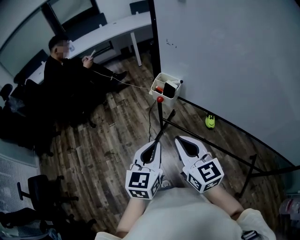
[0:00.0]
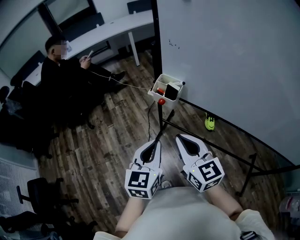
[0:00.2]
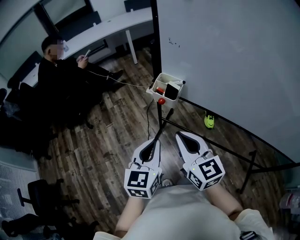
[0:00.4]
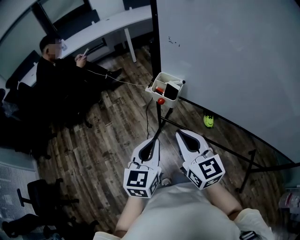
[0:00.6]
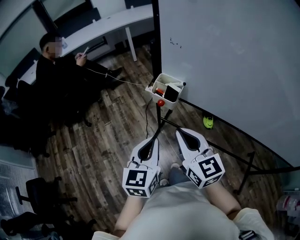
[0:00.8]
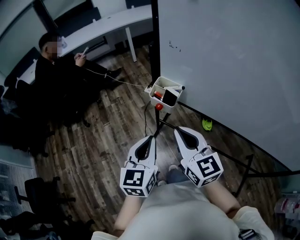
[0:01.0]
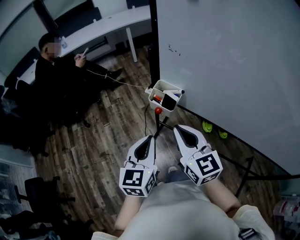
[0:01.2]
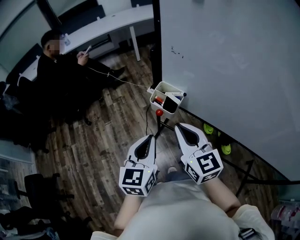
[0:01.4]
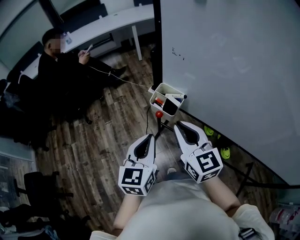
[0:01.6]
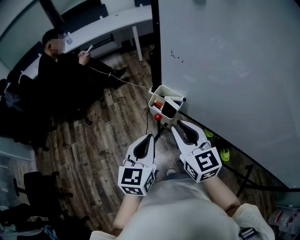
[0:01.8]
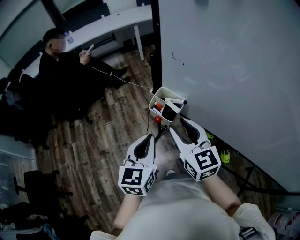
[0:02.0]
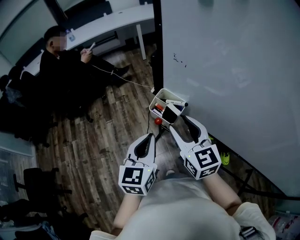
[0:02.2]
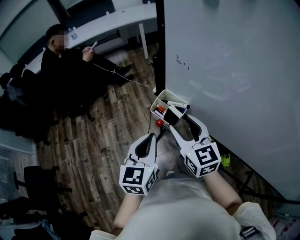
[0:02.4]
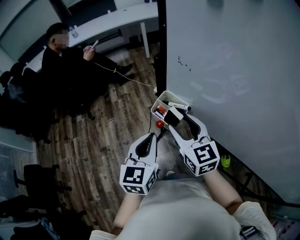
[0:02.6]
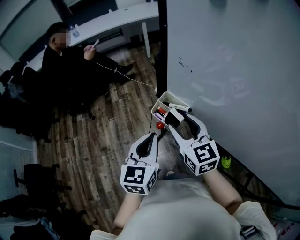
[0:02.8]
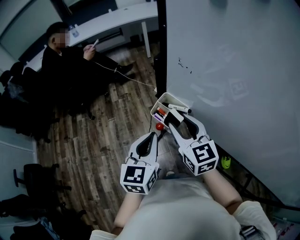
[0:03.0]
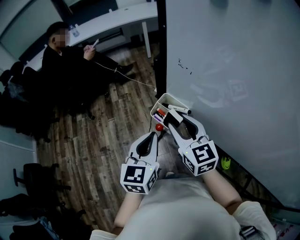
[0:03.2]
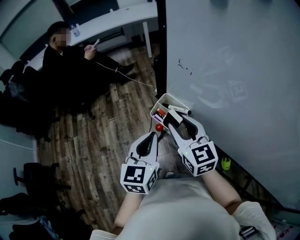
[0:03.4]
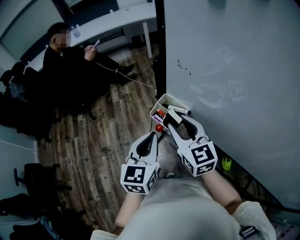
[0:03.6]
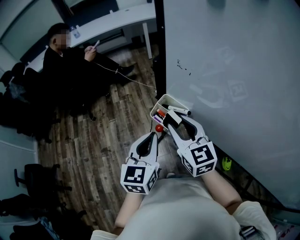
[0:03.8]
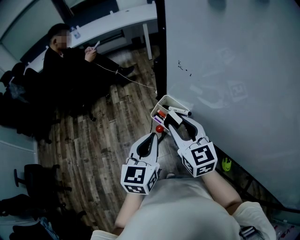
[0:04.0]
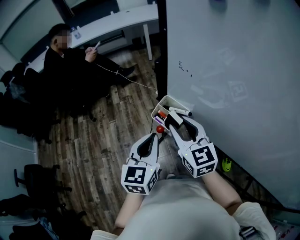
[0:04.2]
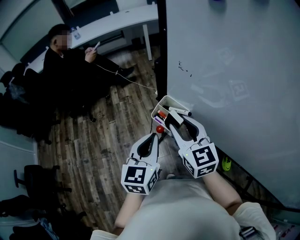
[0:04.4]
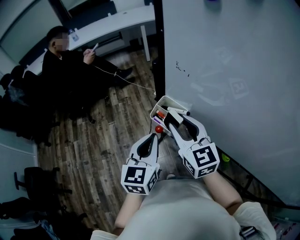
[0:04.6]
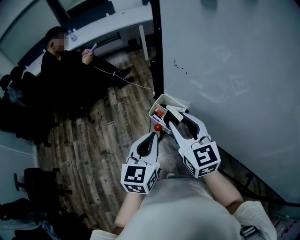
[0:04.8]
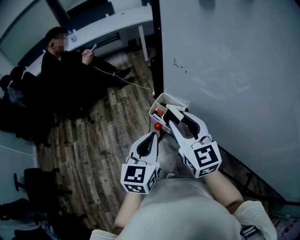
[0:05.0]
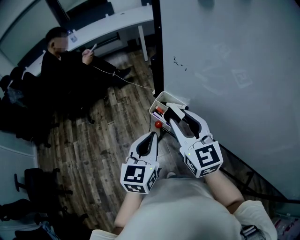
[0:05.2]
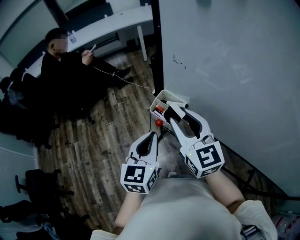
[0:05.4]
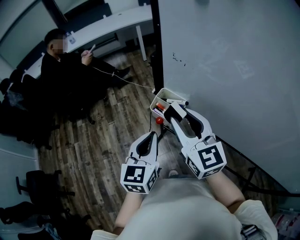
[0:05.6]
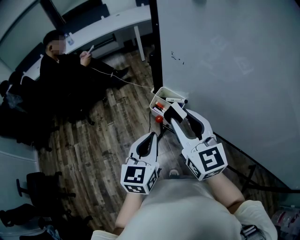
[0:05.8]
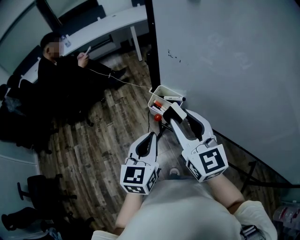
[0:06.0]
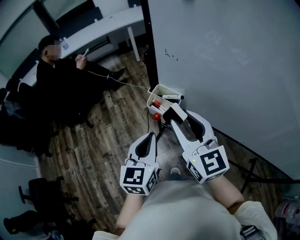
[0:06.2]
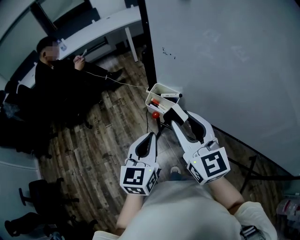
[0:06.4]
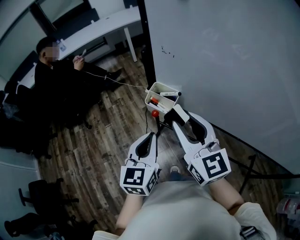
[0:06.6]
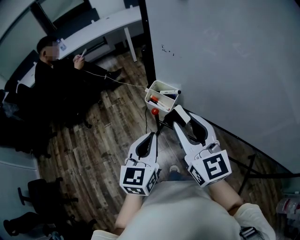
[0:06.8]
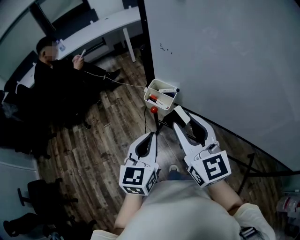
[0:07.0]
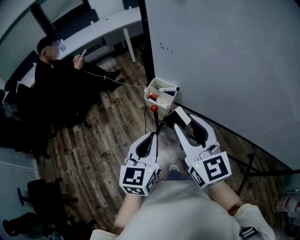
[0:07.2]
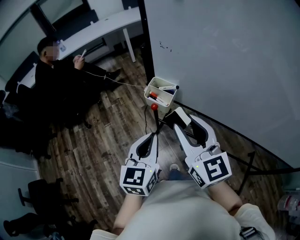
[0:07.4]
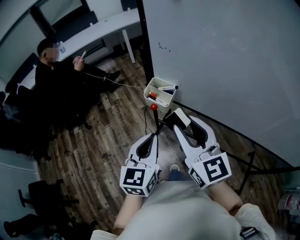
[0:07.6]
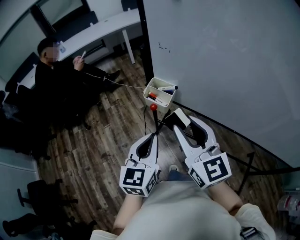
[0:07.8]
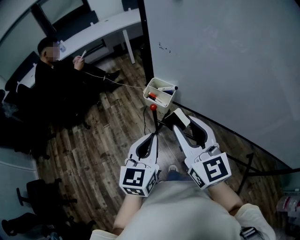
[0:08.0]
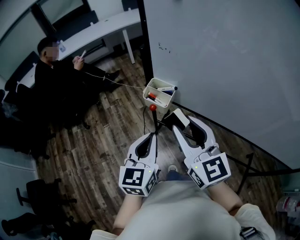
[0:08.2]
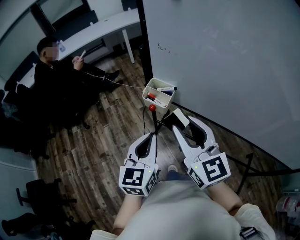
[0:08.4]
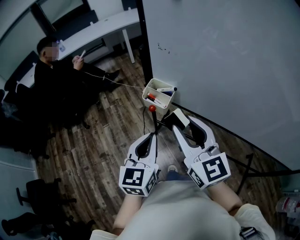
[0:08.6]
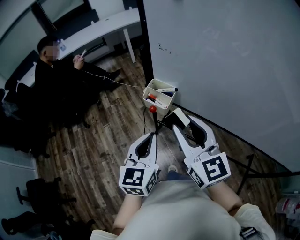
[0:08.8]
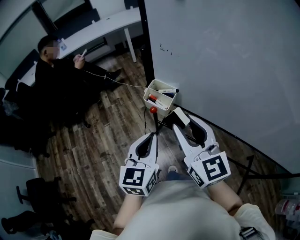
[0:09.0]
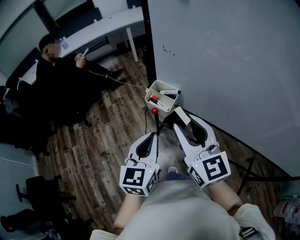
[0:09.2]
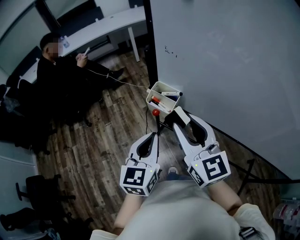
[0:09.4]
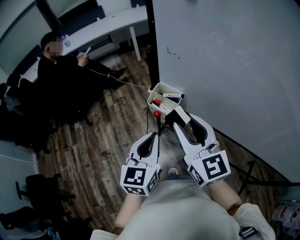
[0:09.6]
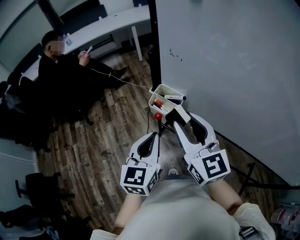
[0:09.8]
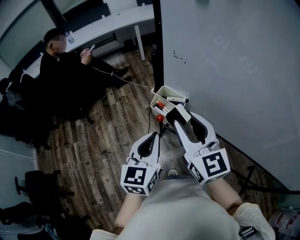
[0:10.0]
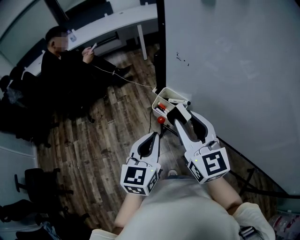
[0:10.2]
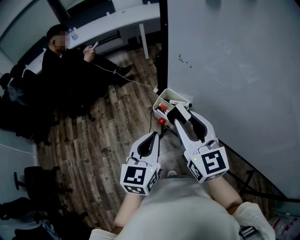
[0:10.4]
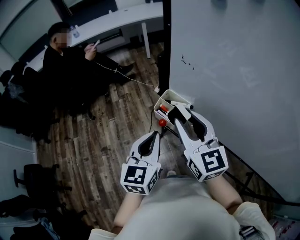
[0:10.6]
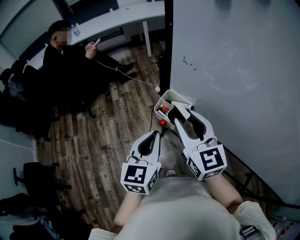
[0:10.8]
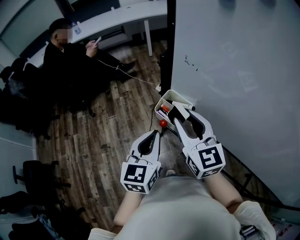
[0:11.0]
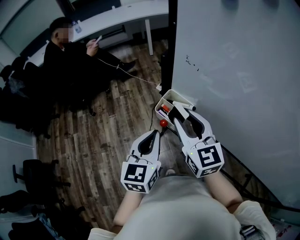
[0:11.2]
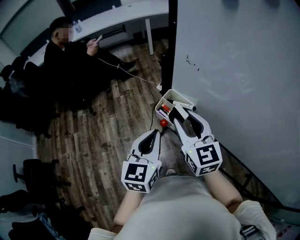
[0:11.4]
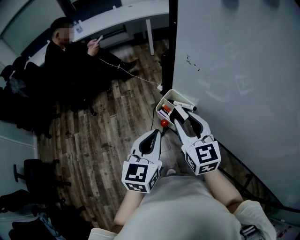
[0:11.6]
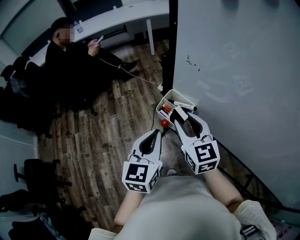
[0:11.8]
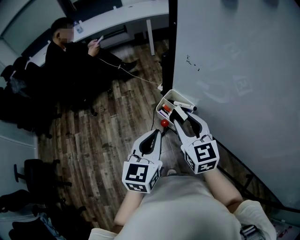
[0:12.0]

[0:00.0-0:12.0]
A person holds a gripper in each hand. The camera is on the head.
0:00.0 to 0:01.6: Both grippers move forward, roughly 15 cm.
0:01.6 to 0:03.0: Both grippers move forward, roughly 10 cm. The right gripper opens its fingers.
0:03.0 to 0:04.4: Both grippers stay about where they are.
0:04.4 to 0:06.0: The left gripper ends up some 5 cm from where it was, while the right gripper goes approximately 10 cm upward and backward.
0:06.0 to 0:07.6: Both grippers travel together backward, roughly 10 cm.
0:07.6 to 0:09.0: The grippers stay close to where they were, moving slightly.
0:09.0 to 0:10.4: The two grippers go approximately 10 cm forward.
0:10.4 to 0:12.0: The right gripper shifts about 10 cm downward.

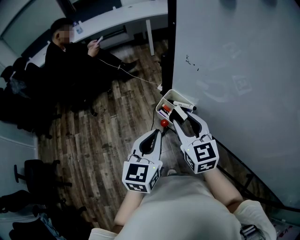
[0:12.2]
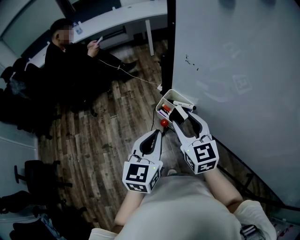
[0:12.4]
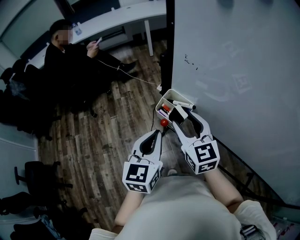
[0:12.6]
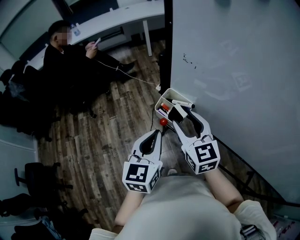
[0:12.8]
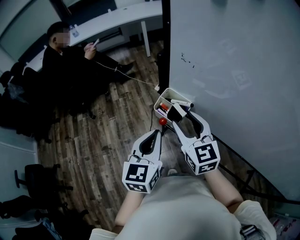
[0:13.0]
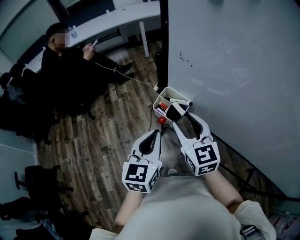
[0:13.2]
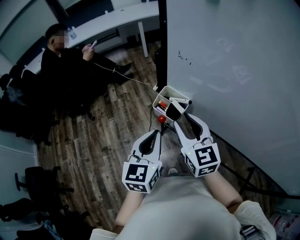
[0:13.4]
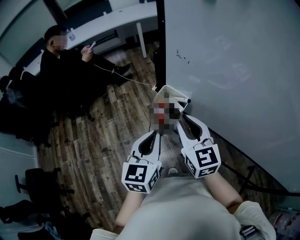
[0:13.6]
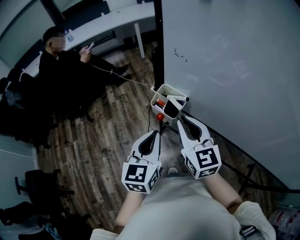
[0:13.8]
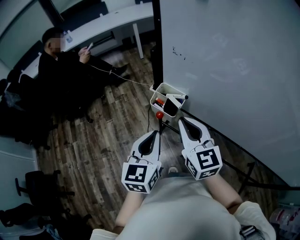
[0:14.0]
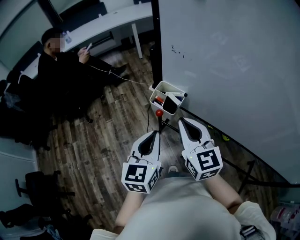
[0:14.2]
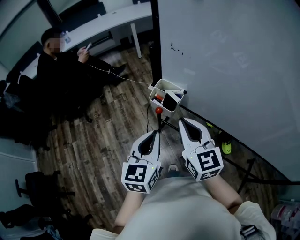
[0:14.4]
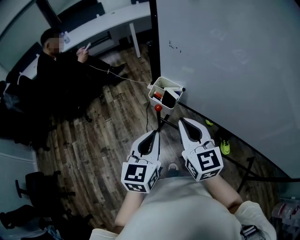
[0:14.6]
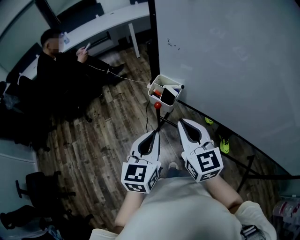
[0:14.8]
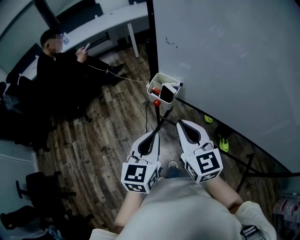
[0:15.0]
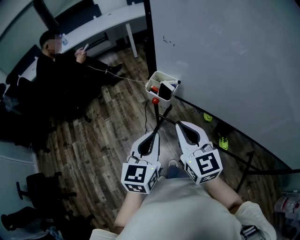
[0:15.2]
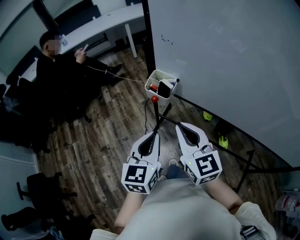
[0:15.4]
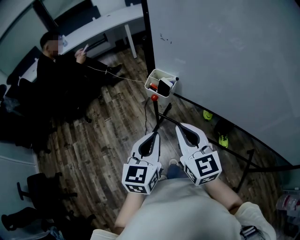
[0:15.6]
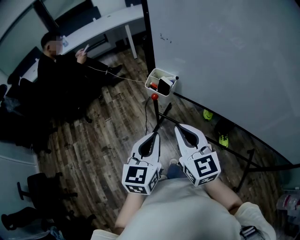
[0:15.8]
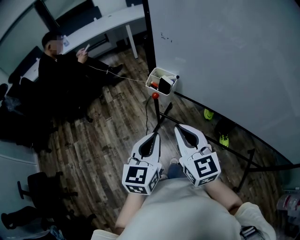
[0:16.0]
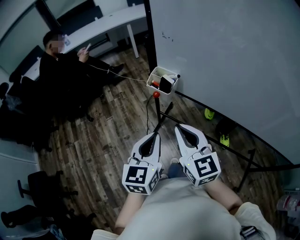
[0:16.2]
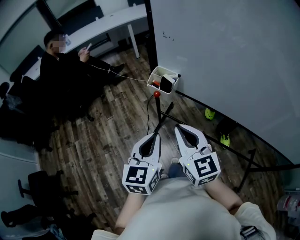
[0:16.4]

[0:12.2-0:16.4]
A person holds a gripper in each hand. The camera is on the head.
0:12.2 to 0:13.6: There are only small adjustments of the grippers.
0:13.6 to 0:15.0: The grippers both shift backward by approximately 10 cm. The right gripper closes up.
0:15.0 to 0:16.4: The grippers both shift backward by about 5 cm.

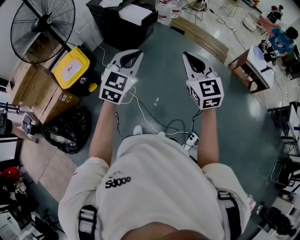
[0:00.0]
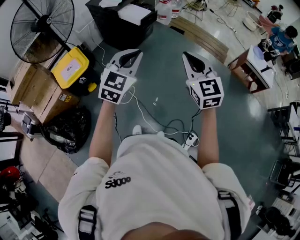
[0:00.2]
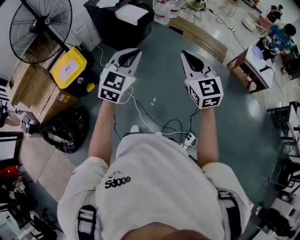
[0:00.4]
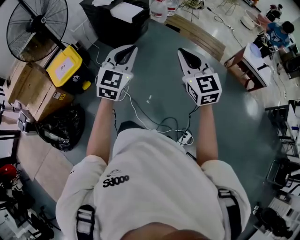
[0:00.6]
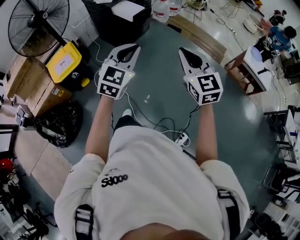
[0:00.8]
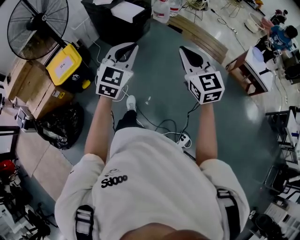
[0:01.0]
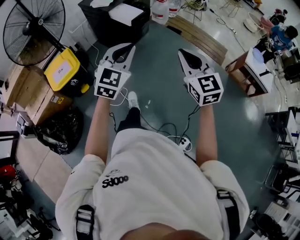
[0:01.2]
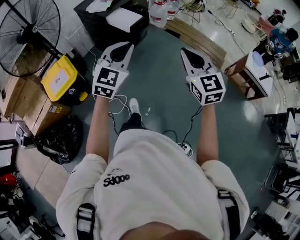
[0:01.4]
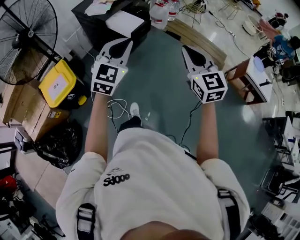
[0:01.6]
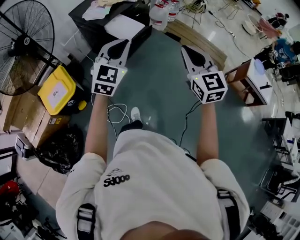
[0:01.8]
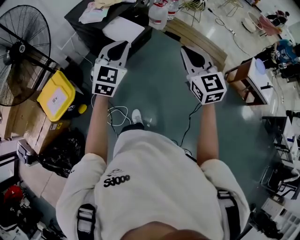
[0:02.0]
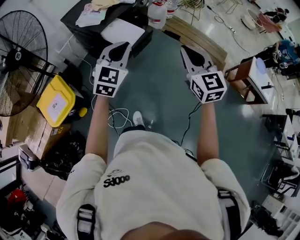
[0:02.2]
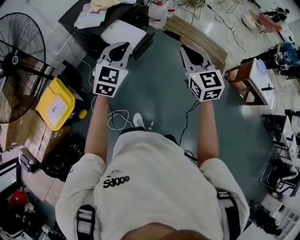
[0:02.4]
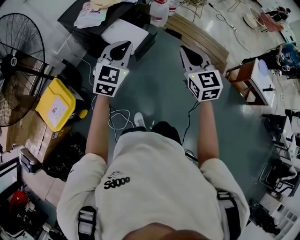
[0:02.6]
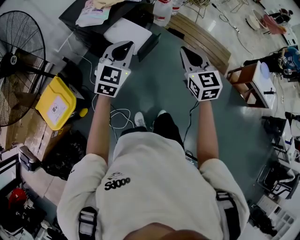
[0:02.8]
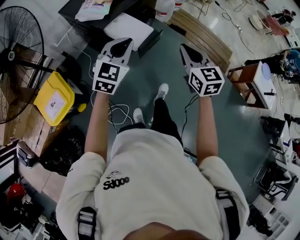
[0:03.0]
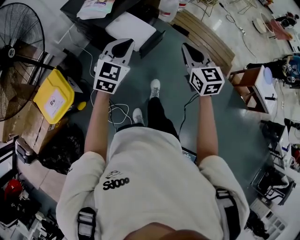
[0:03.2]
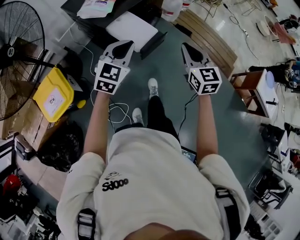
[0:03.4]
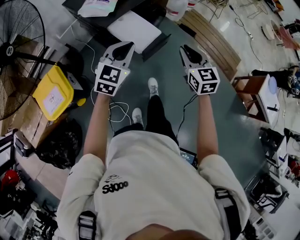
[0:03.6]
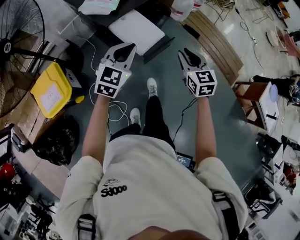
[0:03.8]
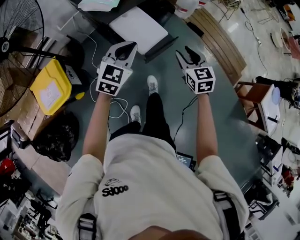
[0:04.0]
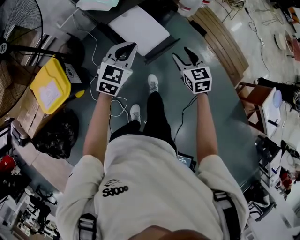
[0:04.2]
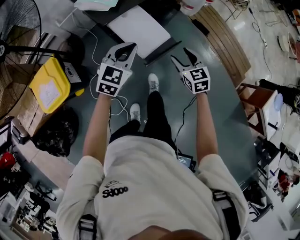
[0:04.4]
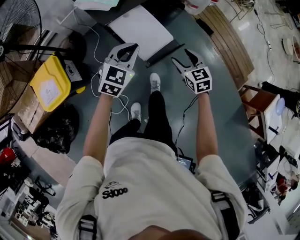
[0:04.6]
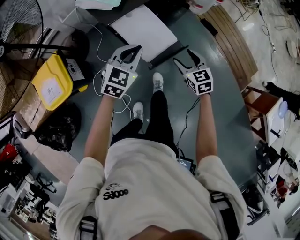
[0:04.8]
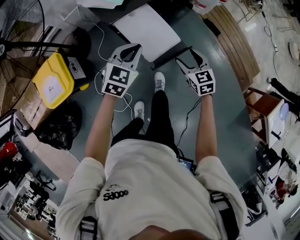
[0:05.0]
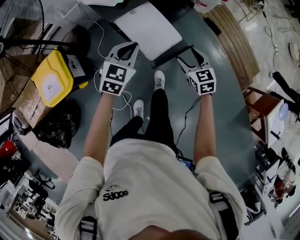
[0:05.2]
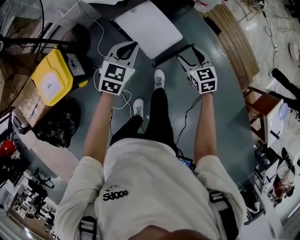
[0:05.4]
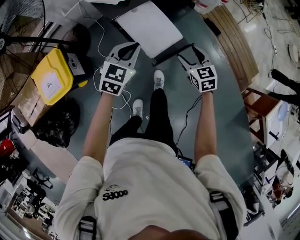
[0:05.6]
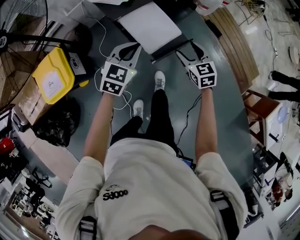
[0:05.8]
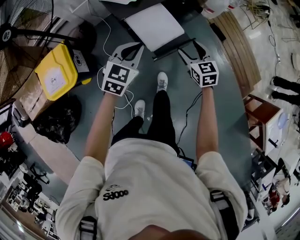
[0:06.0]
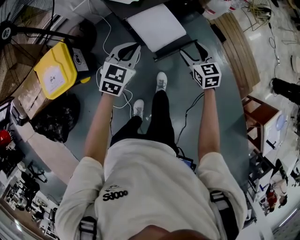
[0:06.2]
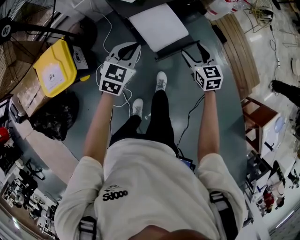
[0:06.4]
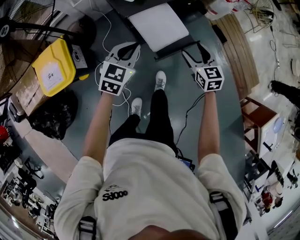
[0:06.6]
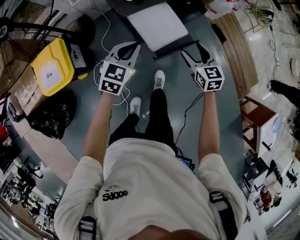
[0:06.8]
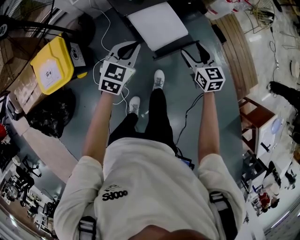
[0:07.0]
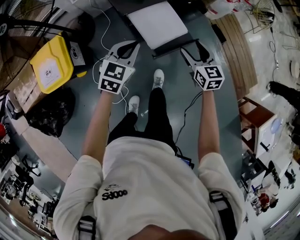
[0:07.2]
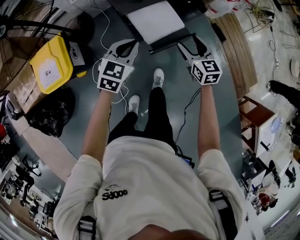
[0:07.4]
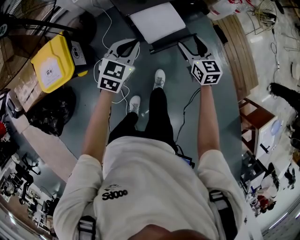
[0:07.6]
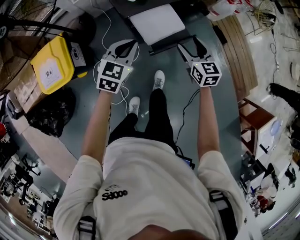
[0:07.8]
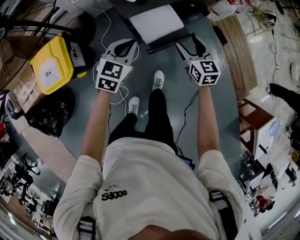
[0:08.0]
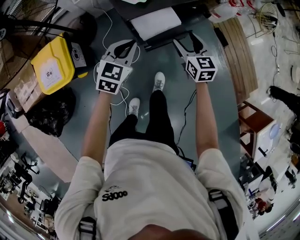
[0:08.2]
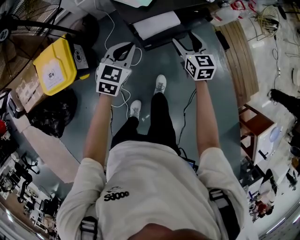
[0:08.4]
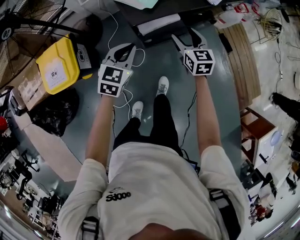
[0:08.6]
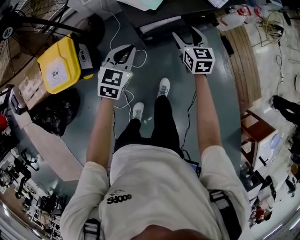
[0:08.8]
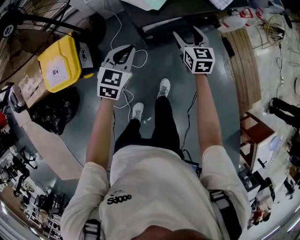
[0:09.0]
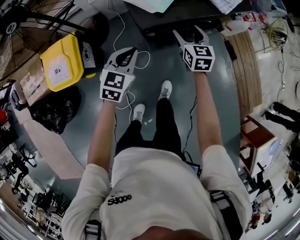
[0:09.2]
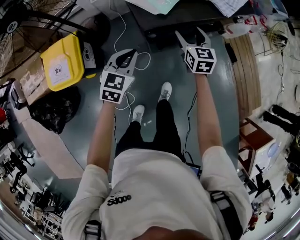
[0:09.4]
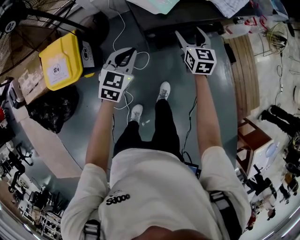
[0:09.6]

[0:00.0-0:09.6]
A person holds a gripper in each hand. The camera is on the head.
0:00.0 to 0:01.6: The grippers both shift forward by approximately 25 cm.
0:01.6 to 0:03.2: Both grippers travel together forward, roughly 30 cm.
0:03.2 to 0:04.8: Both grippers move downward and forward, some 30 cm. The right gripper swivels roughly 30 degrees, and opens up.
0:04.8 to 0:06.4: The right gripper changes place by roughly 5 cm; the left gripper is displaced to the left by about 5 cm.
0:06.4 to 0:08.0: The right gripper moves forward, approximately 5 cm.
0:08.0 to 0:09.6: The right gripper heads forward and to the left, covering some 15 cm, while the left gripper shifts some 5 cm to the left.
